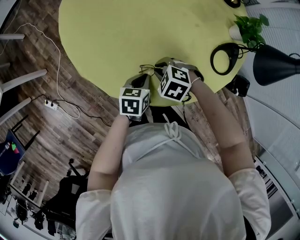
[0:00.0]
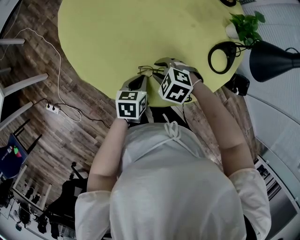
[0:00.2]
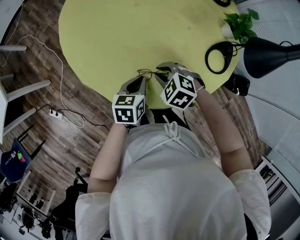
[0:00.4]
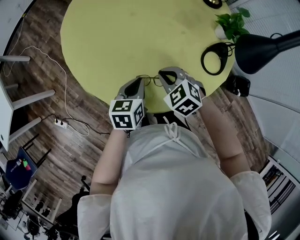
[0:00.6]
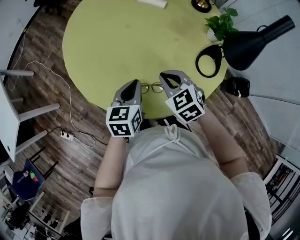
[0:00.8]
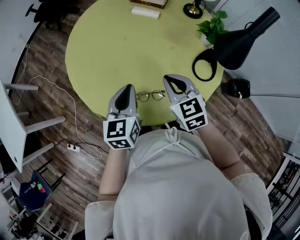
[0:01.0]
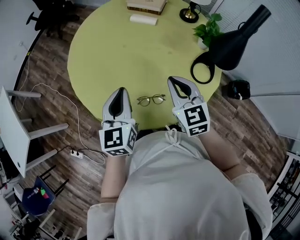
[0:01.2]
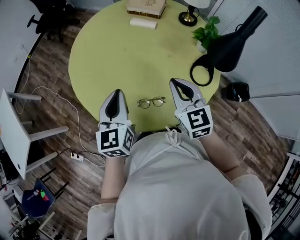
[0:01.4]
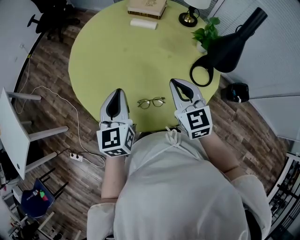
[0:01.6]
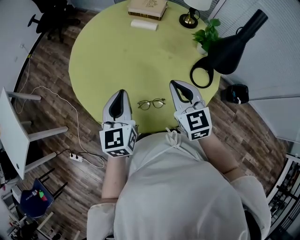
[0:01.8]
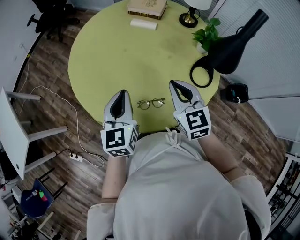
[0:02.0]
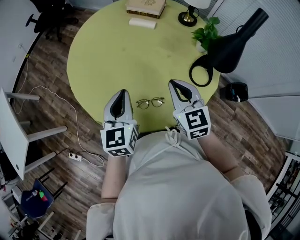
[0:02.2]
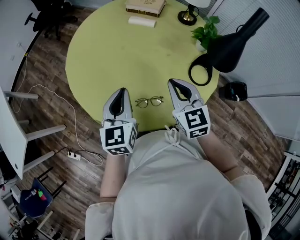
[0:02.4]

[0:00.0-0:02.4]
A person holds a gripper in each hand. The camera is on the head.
0:00.0 to 0:01.2: The right gripper goes roughly 25 cm upward and to the right, and tilts its fingers approximately 50 degrees upward. The left gripper goes roughly 30 cm upward, and tips its fingers upward by approximately 30 degrees.
0:01.2 to 0:02.4: The grippers make only small movements.

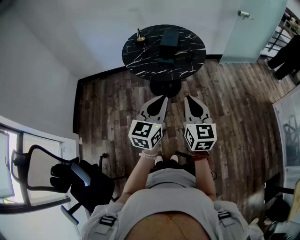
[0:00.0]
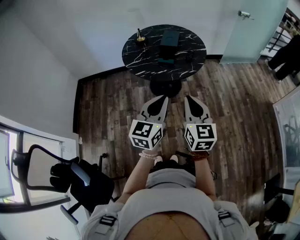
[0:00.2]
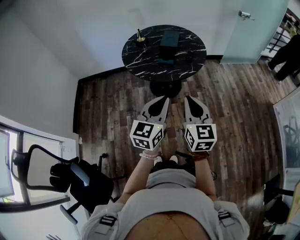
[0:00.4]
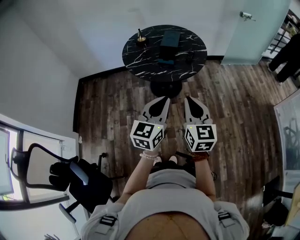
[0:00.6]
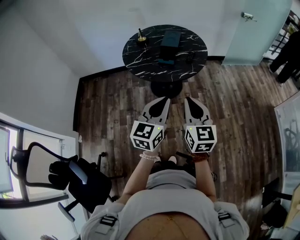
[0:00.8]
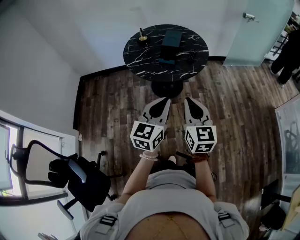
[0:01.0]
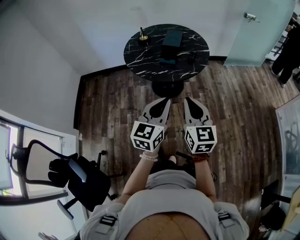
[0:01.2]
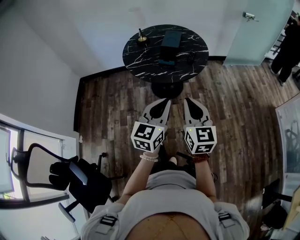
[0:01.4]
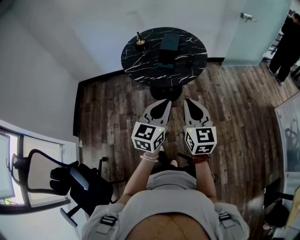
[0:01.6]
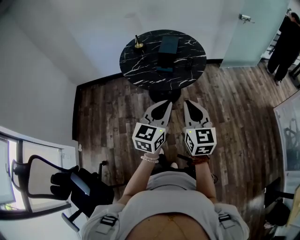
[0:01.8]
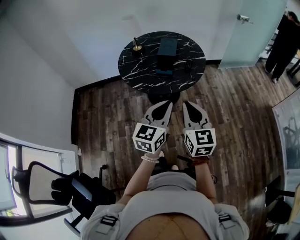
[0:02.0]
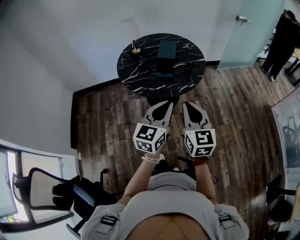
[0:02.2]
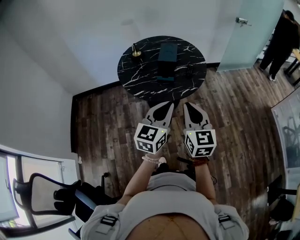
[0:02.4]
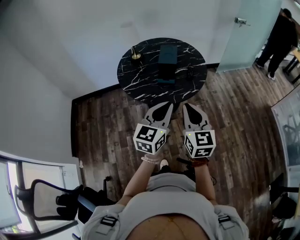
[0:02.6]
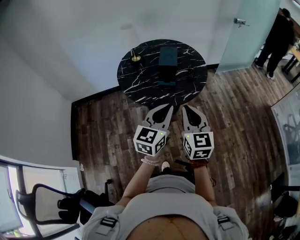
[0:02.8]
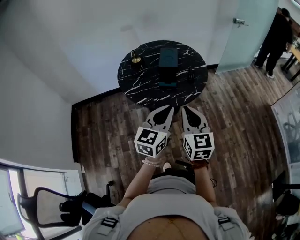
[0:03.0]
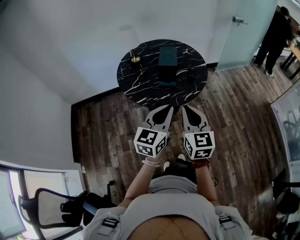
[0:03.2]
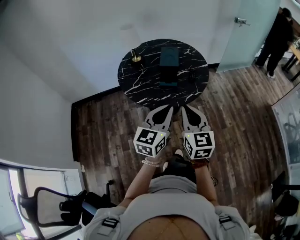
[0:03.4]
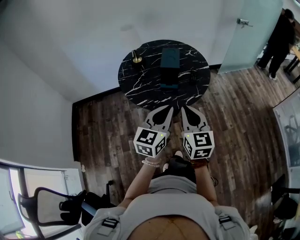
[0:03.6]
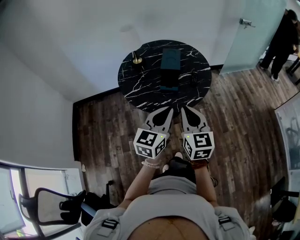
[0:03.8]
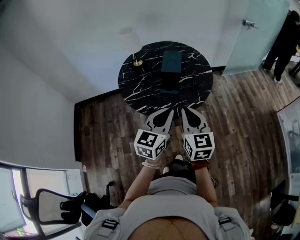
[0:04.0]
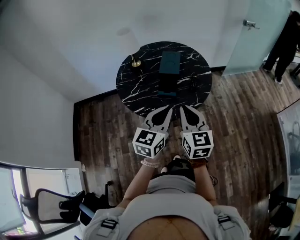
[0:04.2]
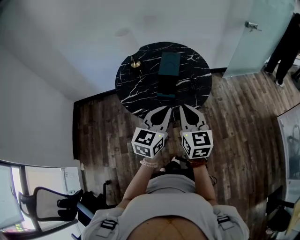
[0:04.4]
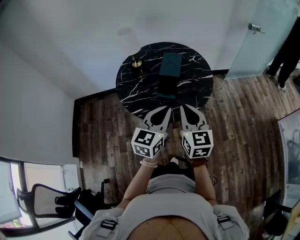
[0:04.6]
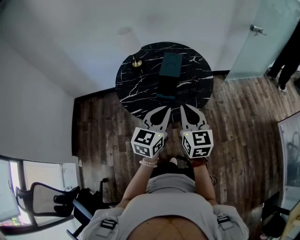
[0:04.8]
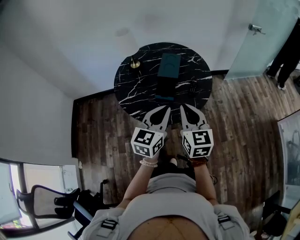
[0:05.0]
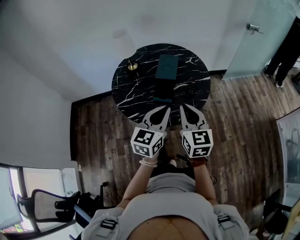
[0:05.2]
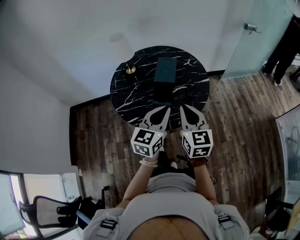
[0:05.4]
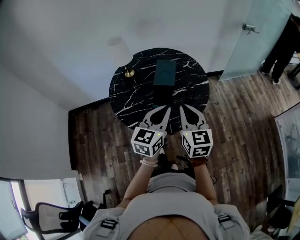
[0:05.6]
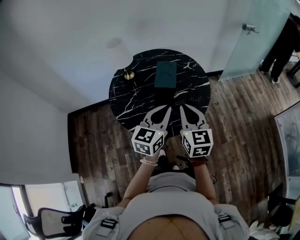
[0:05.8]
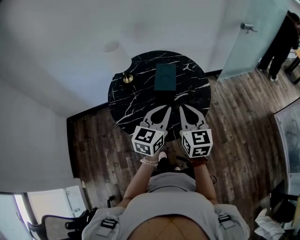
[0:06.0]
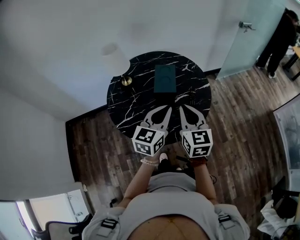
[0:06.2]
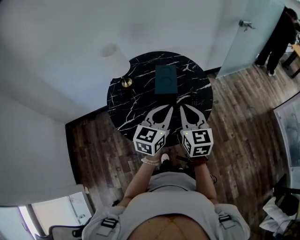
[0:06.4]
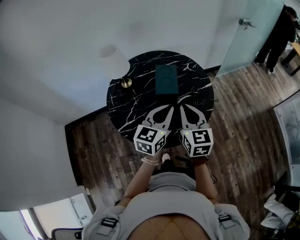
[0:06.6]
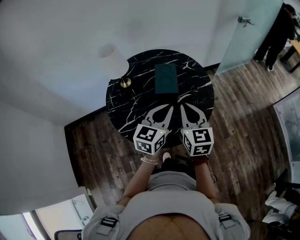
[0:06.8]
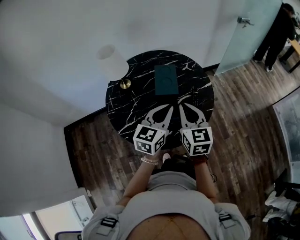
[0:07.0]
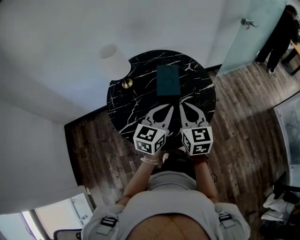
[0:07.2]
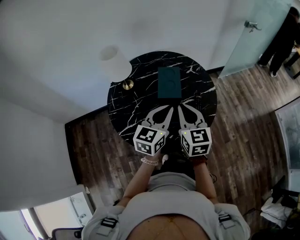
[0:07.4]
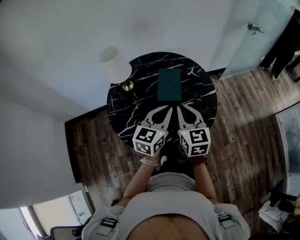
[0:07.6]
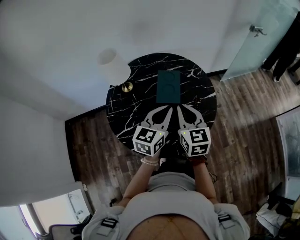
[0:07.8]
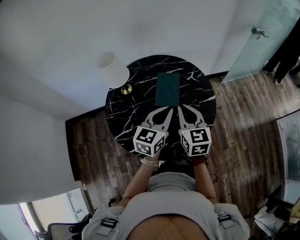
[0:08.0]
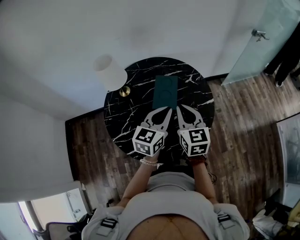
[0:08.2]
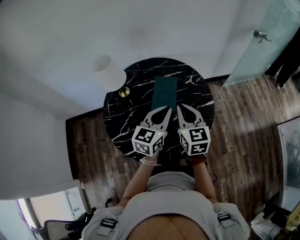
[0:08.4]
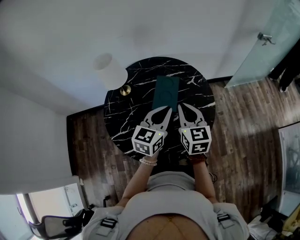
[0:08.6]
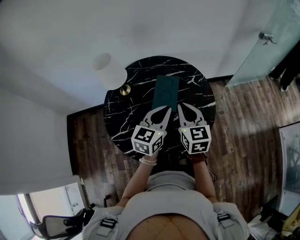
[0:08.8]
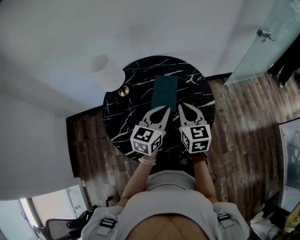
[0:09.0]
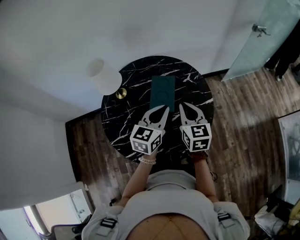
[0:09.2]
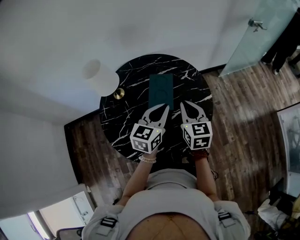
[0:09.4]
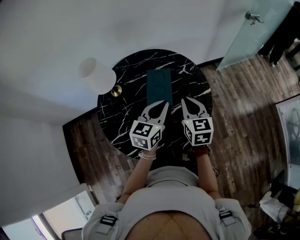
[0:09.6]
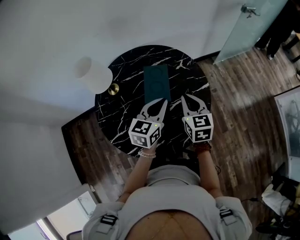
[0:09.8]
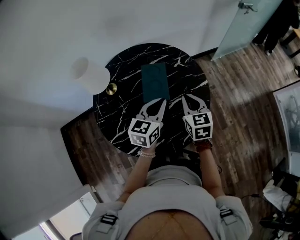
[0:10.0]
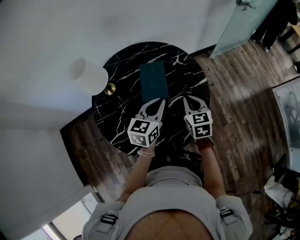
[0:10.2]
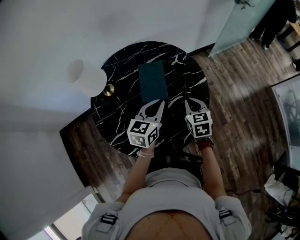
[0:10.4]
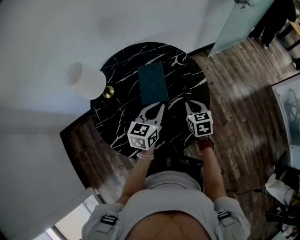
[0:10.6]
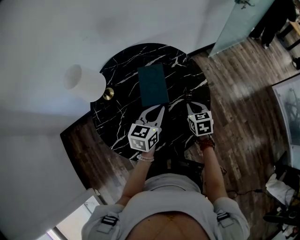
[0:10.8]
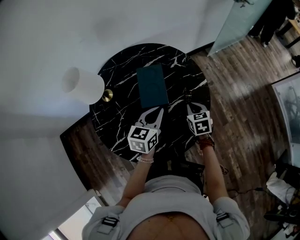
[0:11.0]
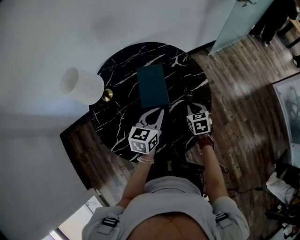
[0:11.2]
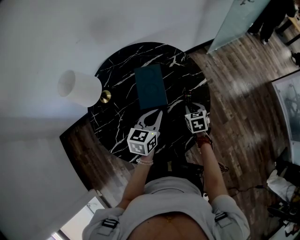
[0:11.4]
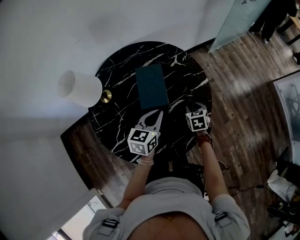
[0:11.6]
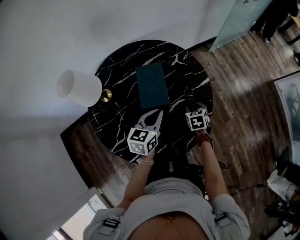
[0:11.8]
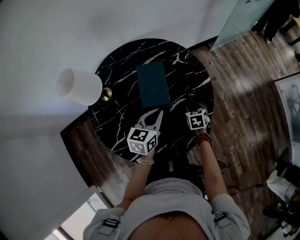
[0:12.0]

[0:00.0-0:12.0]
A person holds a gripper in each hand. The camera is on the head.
0:00.0 to 0:01.6: The left gripper ends up roughly 5 cm from where it was.
0:01.6 to 0:03.0: The right gripper shifts approximately 15 cm to the left and forward, while the left gripper goes approximately 15 cm forward and to the left.
0:03.0 to 0:04.4: The two grippers go some 15 cm forward.
0:04.4 to 0:06.0: Both grippers move forward, about 15 cm.
0:06.0 to 0:07.6: The left gripper travels forward by approximately 10 cm; the right gripper travels forward and to the left by roughly 10 cm.
0:07.6 to 0:09.0: The right gripper travels forward and to the right by some 10 cm. The left gripper goes roughly 10 cm forward.
0:09.0 to 0:10.4: The left gripper travels downward by some 5 cm. The right gripper moves downward and to the right, approximately 15 cm, and turns by some 20 degrees.
0:10.4 to 0:12.0: The right gripper heads downward, covering some 15 cm, changes its angle by roughly 20 degrees, and opens its fingers; the left gripper moves downward, some 5 cm.

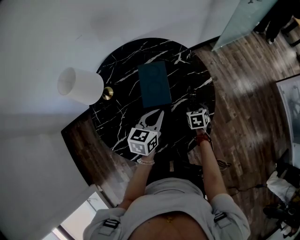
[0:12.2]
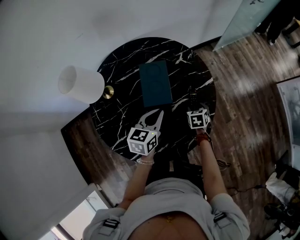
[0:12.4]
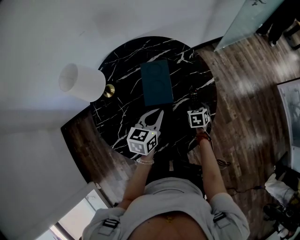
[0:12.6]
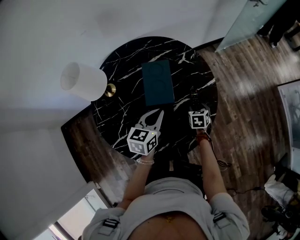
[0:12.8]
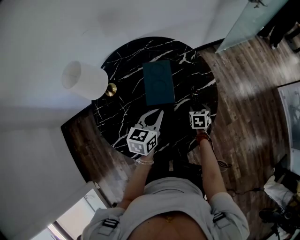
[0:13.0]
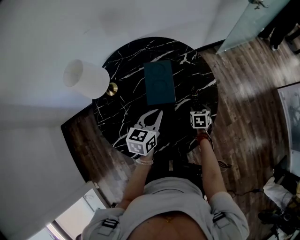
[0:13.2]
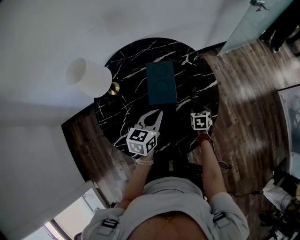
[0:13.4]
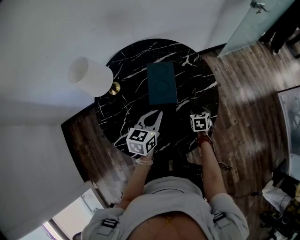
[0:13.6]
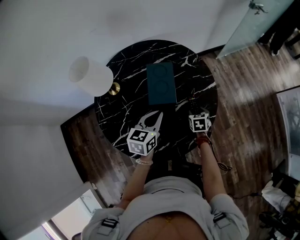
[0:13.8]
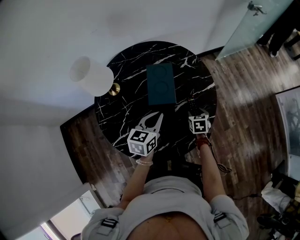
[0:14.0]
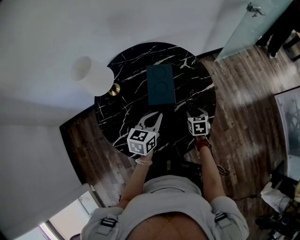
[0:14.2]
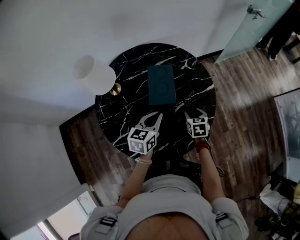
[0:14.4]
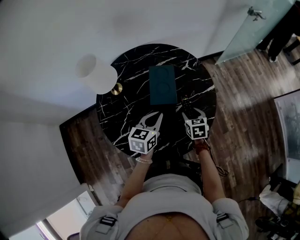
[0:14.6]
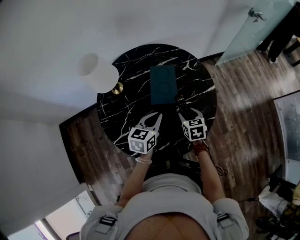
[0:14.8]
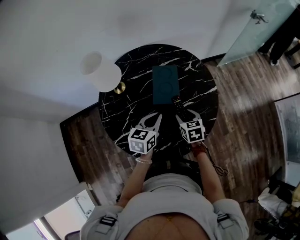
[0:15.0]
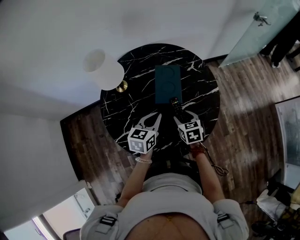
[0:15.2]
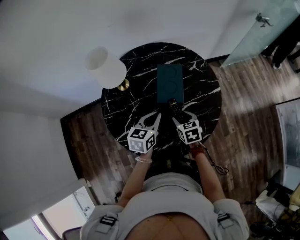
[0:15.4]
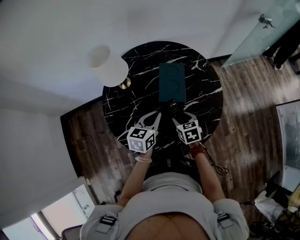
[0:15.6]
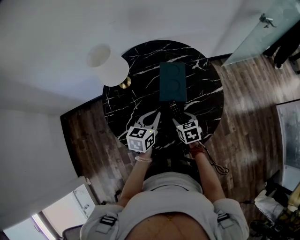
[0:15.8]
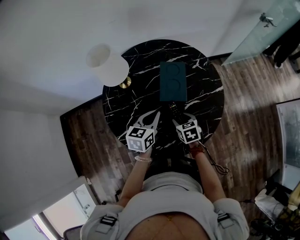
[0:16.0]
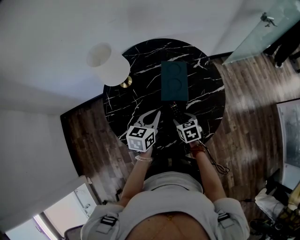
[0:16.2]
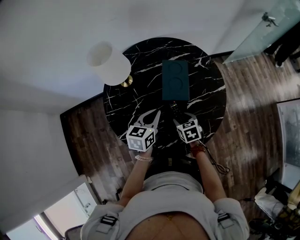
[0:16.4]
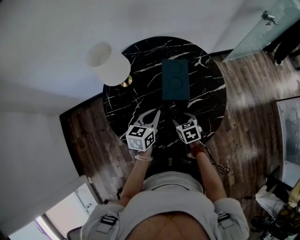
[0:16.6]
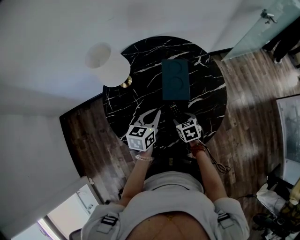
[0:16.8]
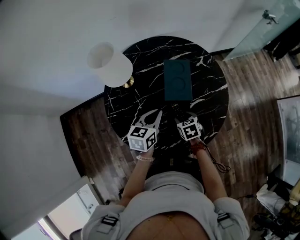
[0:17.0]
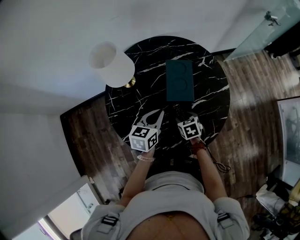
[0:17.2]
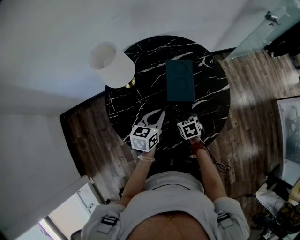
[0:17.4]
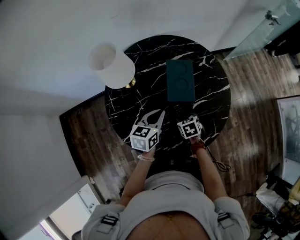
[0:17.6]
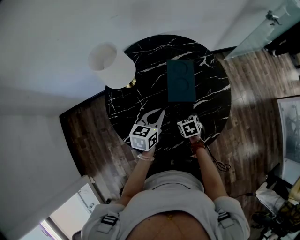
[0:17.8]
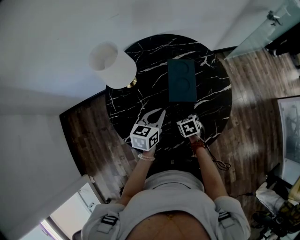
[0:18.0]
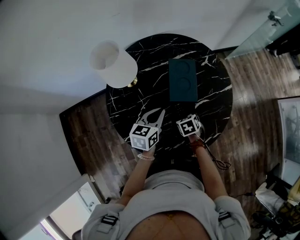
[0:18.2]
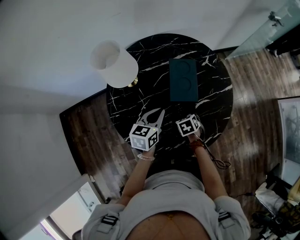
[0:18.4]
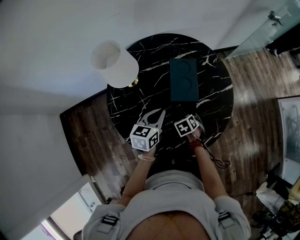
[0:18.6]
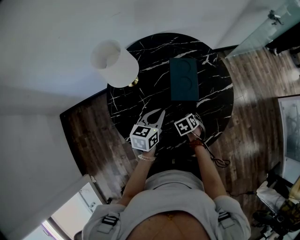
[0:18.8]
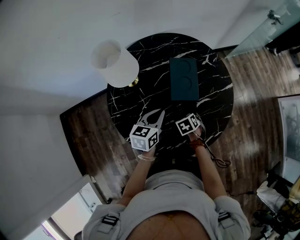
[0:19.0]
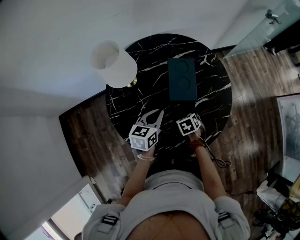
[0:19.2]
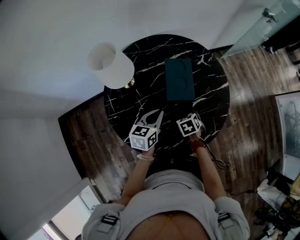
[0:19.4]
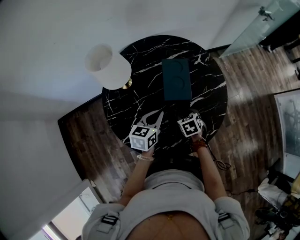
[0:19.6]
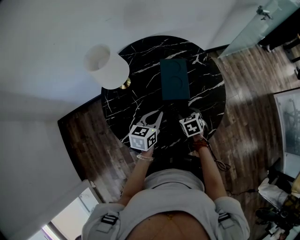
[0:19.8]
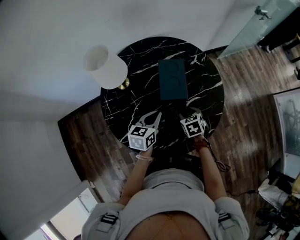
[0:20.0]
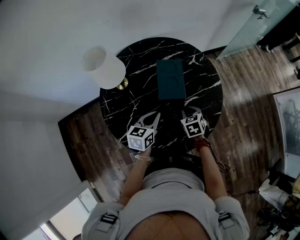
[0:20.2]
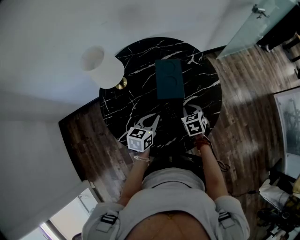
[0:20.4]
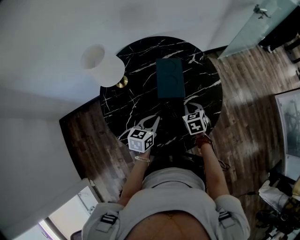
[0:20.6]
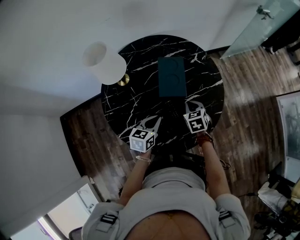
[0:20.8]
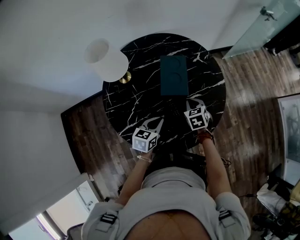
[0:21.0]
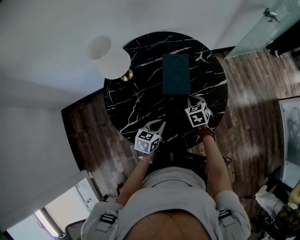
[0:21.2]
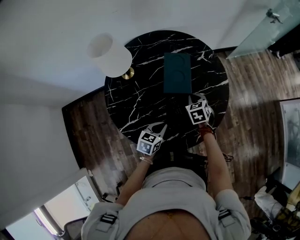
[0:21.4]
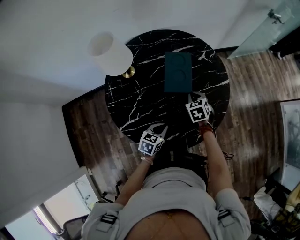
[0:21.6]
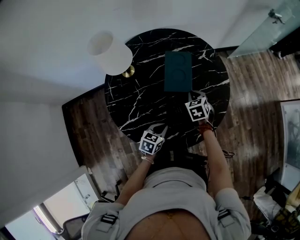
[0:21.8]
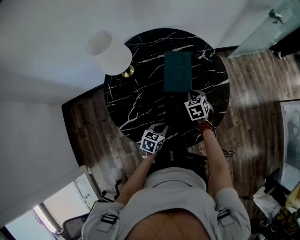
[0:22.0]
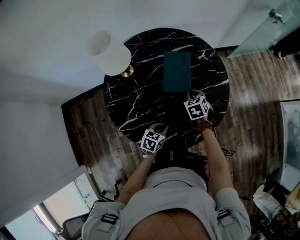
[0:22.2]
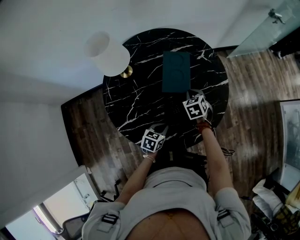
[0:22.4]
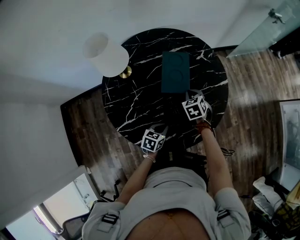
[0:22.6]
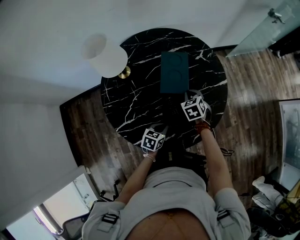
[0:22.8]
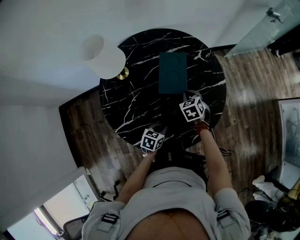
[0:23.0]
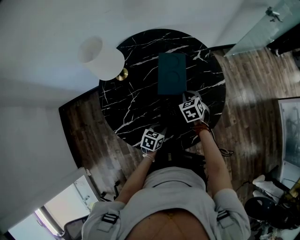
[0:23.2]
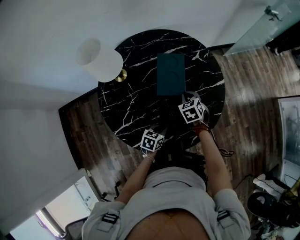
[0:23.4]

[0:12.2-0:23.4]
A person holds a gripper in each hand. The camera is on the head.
0:12.2 to 0:13.8: The grippers make only small movements.
0:13.8 to 0:15.4: The left gripper moves about 5 cm; the right gripper moves to the left, upward and backward, some 15 cm, and turns by some 20 degrees.
0:15.4 to 0:17.0: The right gripper heads downward, covering about 5 cm.
0:17.0 to 0:18.6: There are only small adjustments of the grippers.
0:18.6 to 0:20.2: The right gripper is displaced upward by about 10 cm, and closes its fingers.
0:20.2 to 0:21.8: The left gripper heads downward, backward and to the right, covering about 15 cm; the right gripper goes about 5 cm forward.
0:21.8 to 0:23.4: The left gripper shifts by about 5 cm.
